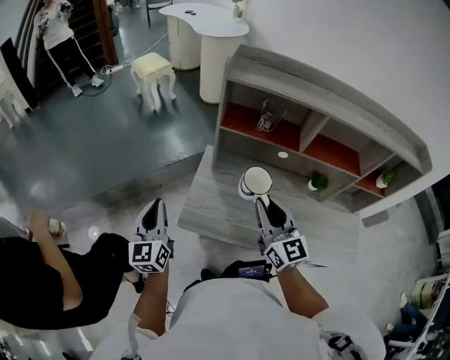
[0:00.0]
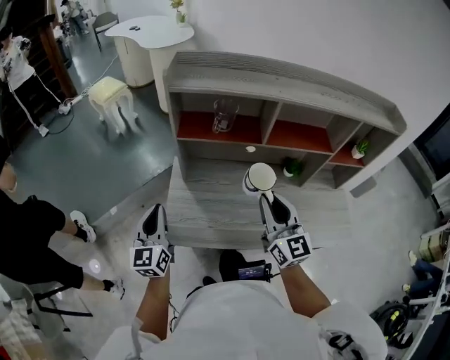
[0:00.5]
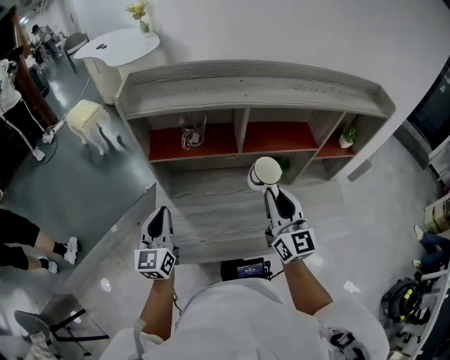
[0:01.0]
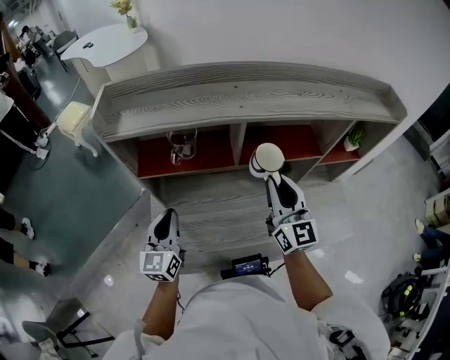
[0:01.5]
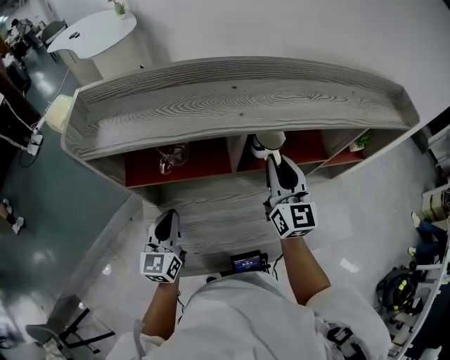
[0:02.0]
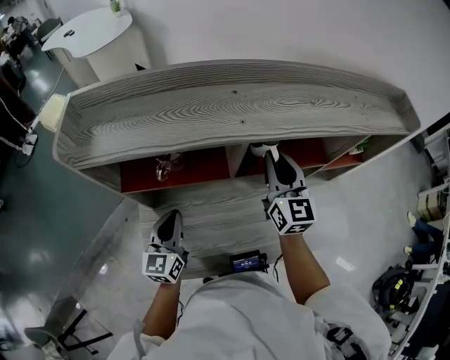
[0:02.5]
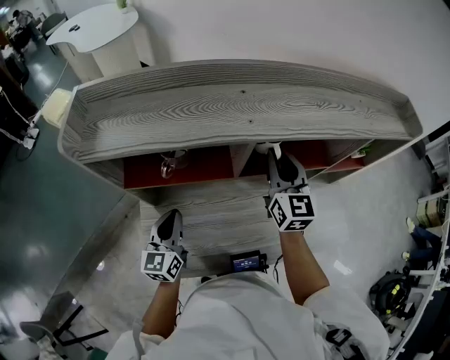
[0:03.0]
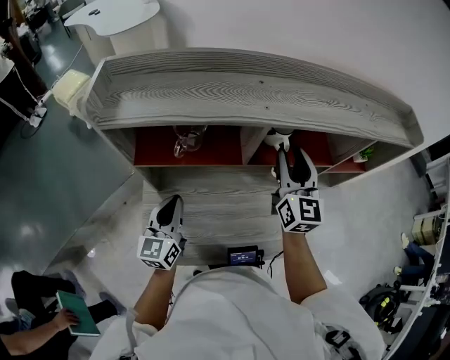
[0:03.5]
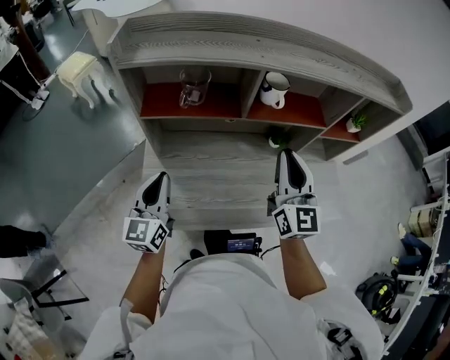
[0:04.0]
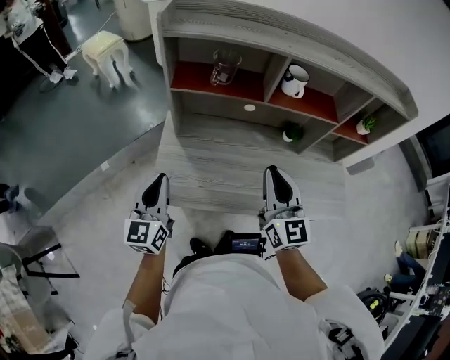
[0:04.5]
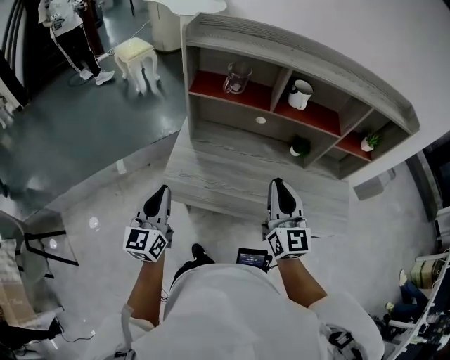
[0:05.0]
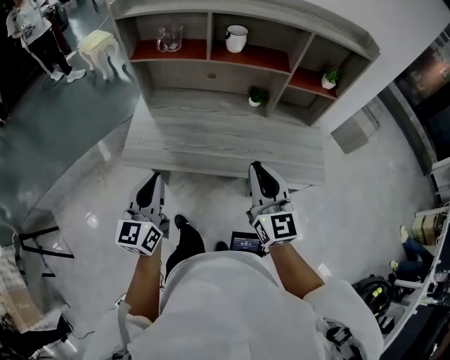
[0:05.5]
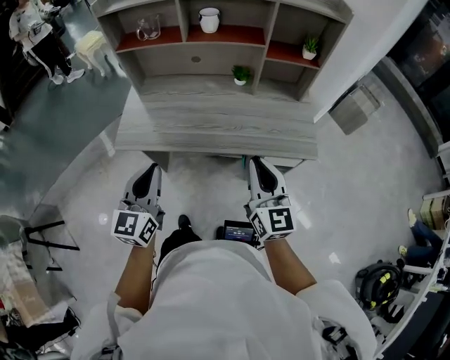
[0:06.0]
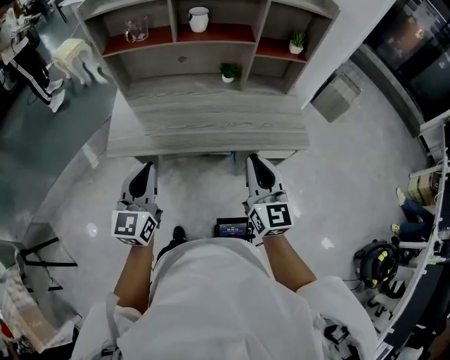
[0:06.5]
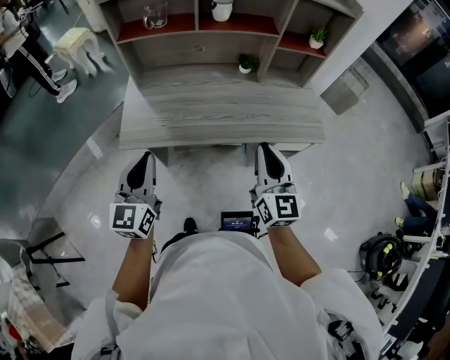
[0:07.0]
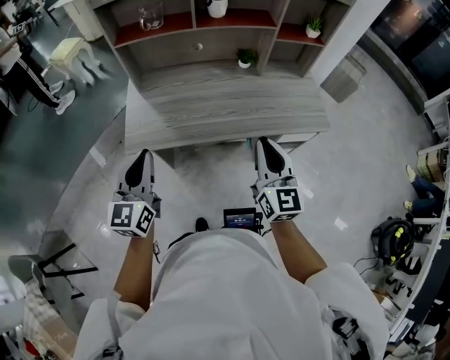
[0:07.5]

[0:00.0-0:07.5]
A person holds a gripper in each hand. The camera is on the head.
0:00.0 to 0:02.0: The left gripper ends up approximately 35 cm from where it was, and changes its angle by approximately 30 degrees. The right gripper moves approximately 35 cm, and rotates approximately 30 degrees.
0:02.0 to 0:04.0: The two grippers go approximately 15 cm backward.
0:04.0 to 0:05.5: The left gripper heads backward and to the right, covering approximately 30 cm. The right gripper shifts approximately 25 cm backward.
0:05.5 to 0:07.5: The left gripper travels to the left by roughly 5 cm, while the right gripper shifts about 5 cm backward, and travels to the right and back again, approximately 10 cm each way.

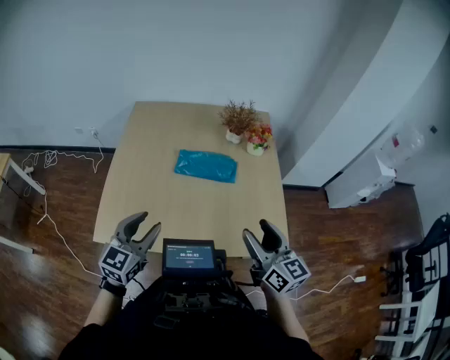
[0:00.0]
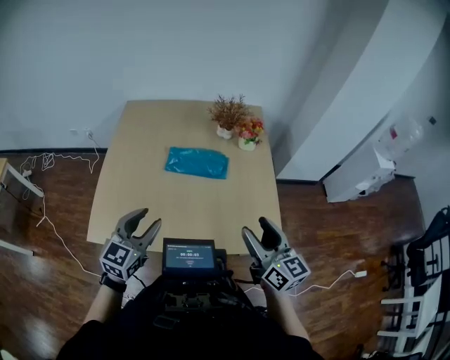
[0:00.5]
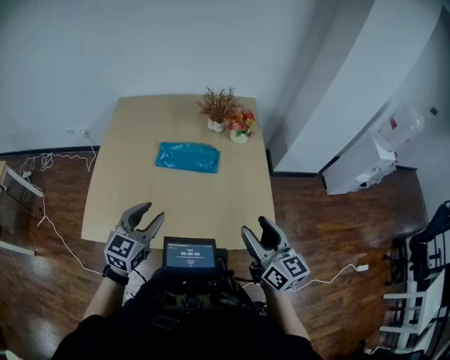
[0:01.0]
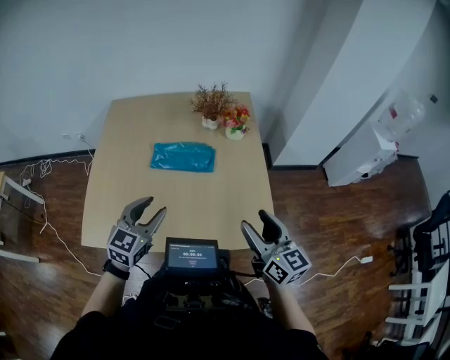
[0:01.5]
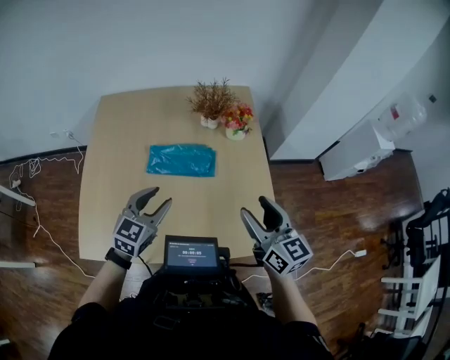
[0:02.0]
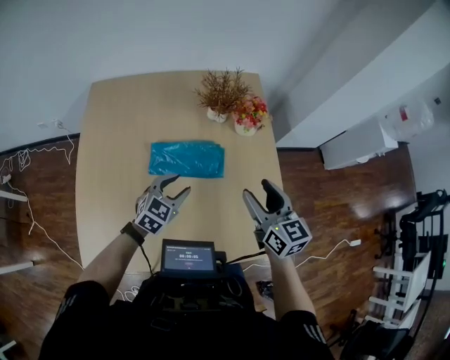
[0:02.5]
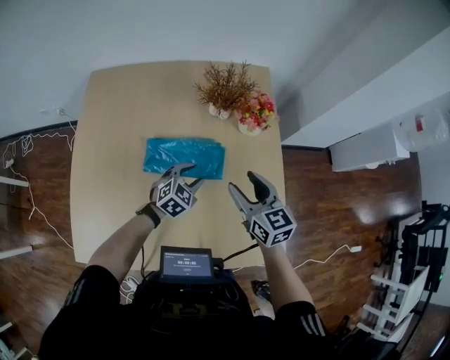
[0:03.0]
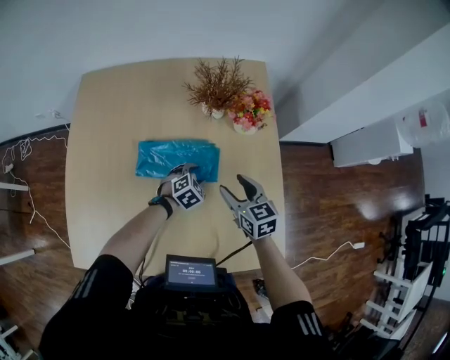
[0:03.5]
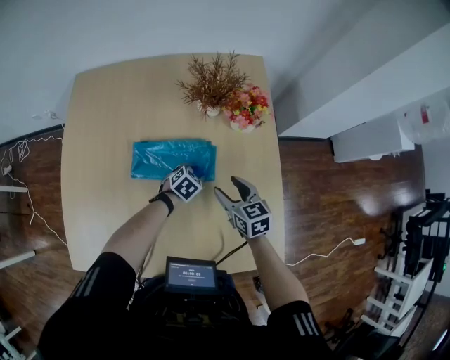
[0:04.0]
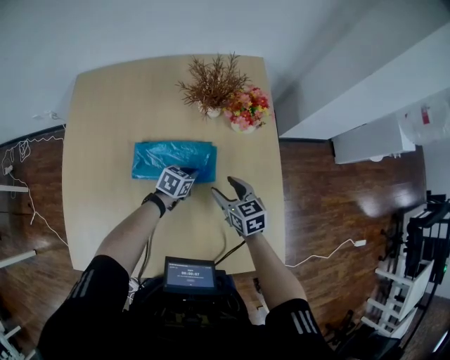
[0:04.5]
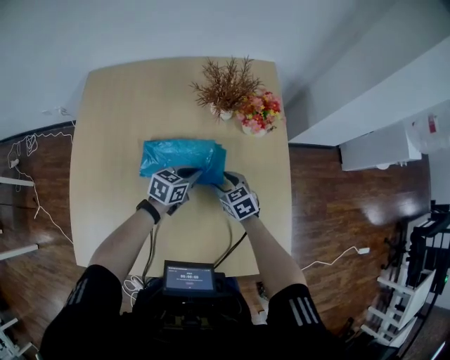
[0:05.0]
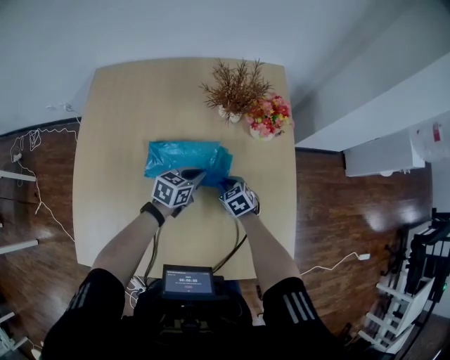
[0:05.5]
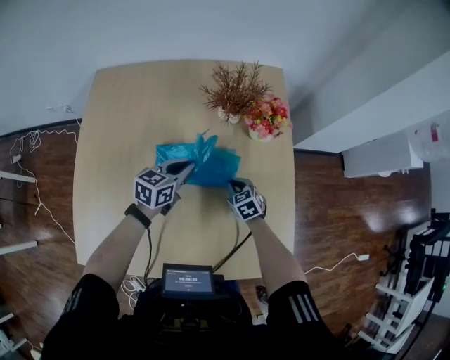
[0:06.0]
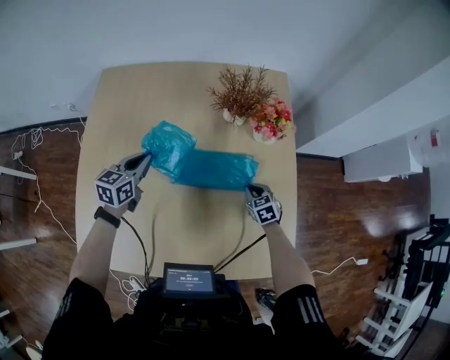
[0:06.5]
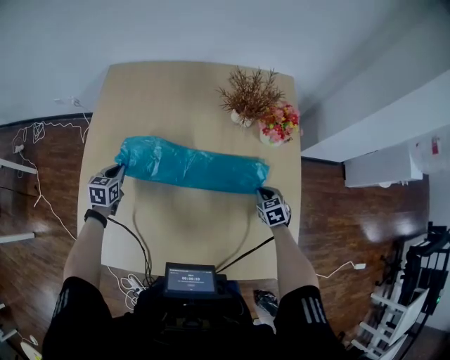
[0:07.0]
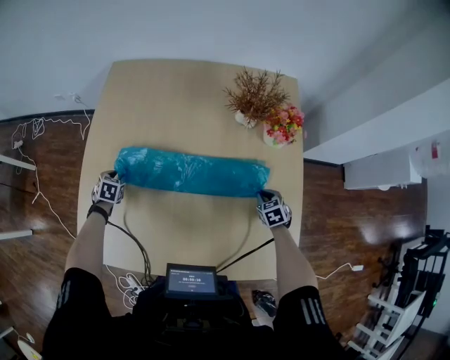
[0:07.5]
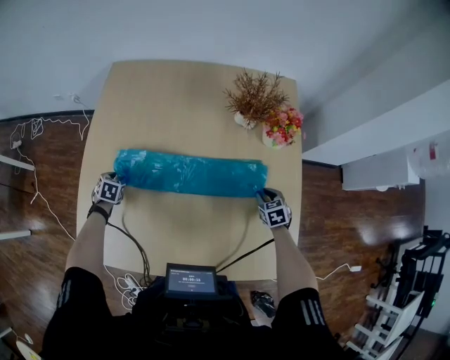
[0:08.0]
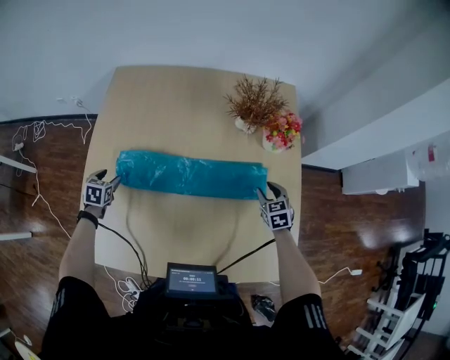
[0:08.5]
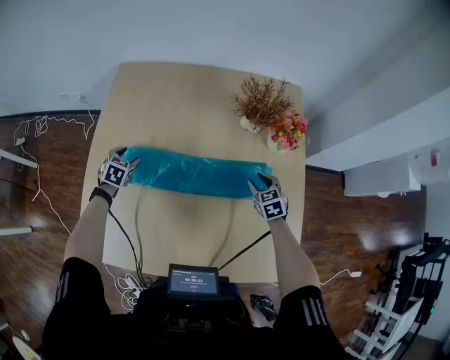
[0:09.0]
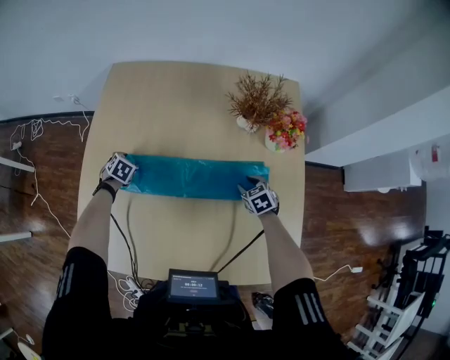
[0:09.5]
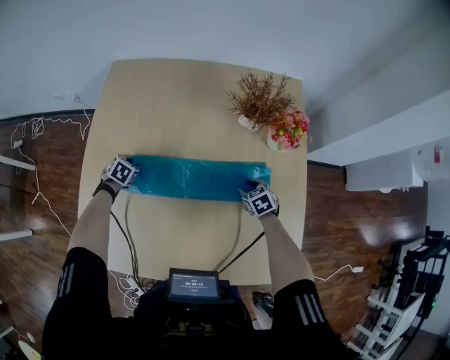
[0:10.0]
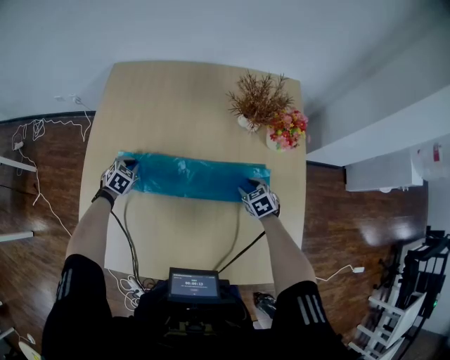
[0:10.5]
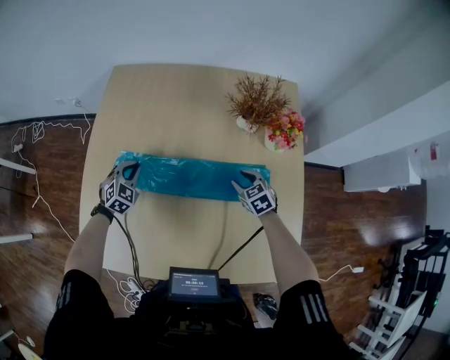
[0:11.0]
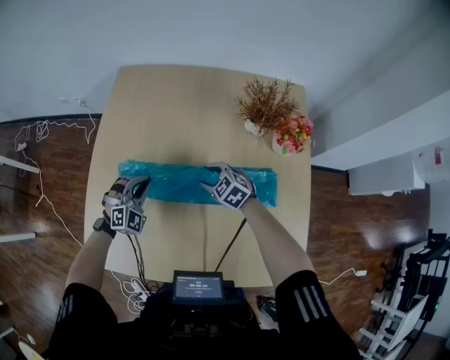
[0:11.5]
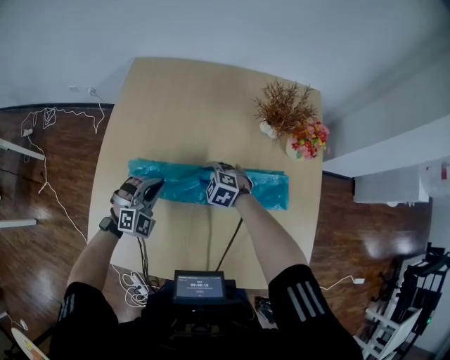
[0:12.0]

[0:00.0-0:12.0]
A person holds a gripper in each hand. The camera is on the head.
0:00.0 to 0:02.0: The right gripper travels forward and to the right by approximately 15 cm, while the left gripper goes some 20 cm forward, to the right and downward.
0:02.0 to 0:04.0: The grippers both shift downward and forward by roughly 35 cm. The left gripper angles its fingers downward, by about 40 degrees. Meanwhile the right gripper turns by some 30 degrees.
0:04.0 to 0:06.0: The right gripper shifts roughly 10 cm downward, changes its angle by about 30 degrees, and closes up; the left gripper shifts some 20 cm upward and to the left, angles its fingers upward, by about 30 degrees, and closes.
0:06.0 to 0:08.0: The right gripper moves to the right, some 10 cm, and opens. The left gripper is displaced to the left and downward by approximately 40 cm, tilts its fingers approximately 40 degrees downward, and opens up.
0:08.0 to 0:10.0: The right gripper is displaced to the left and forward by about 10 cm, while the left gripper heads to the right and forward, covering roughly 10 cm.
0:10.0 to 0:12.0: The right gripper shifts approximately 25 cm to the left, and rolls counterclockwise, seen from behind, by some 40 degrees. The left gripper heads upward, backward and to the right, covering roughly 20 cm, points its fingers roughly 40 degrees further upward, and closes.

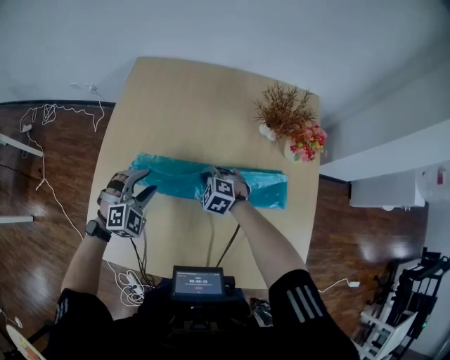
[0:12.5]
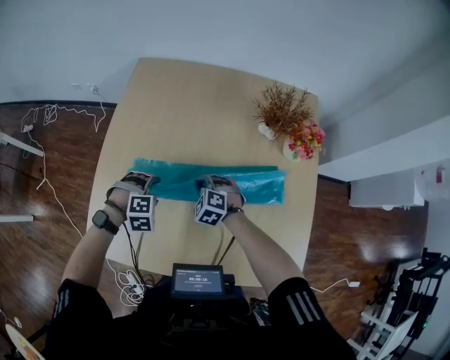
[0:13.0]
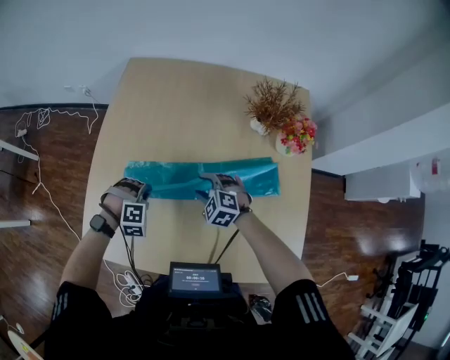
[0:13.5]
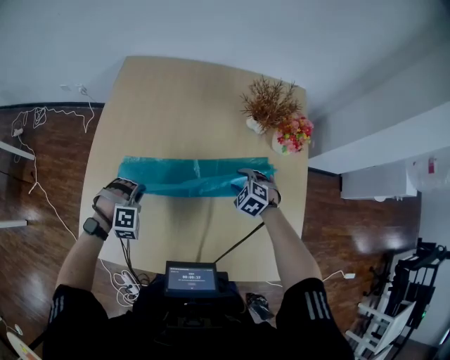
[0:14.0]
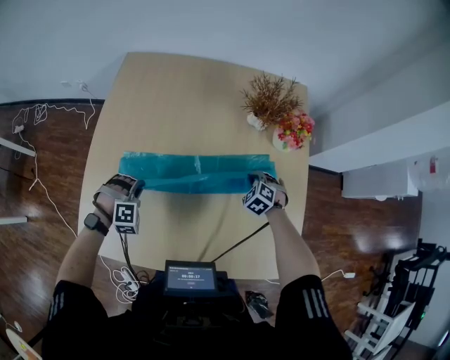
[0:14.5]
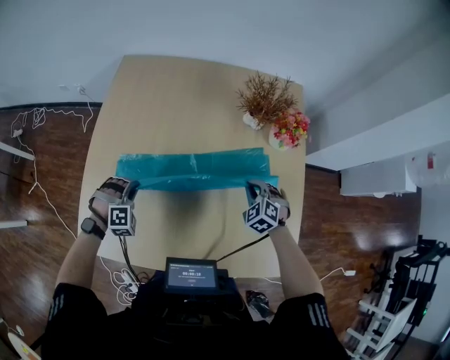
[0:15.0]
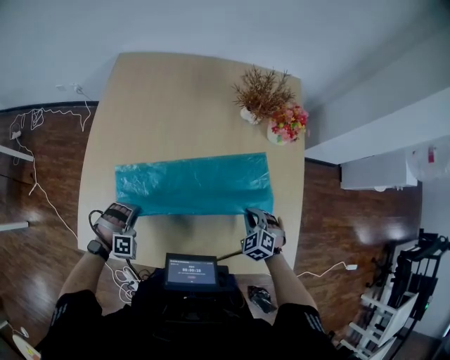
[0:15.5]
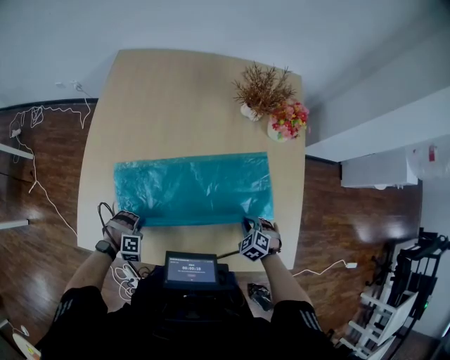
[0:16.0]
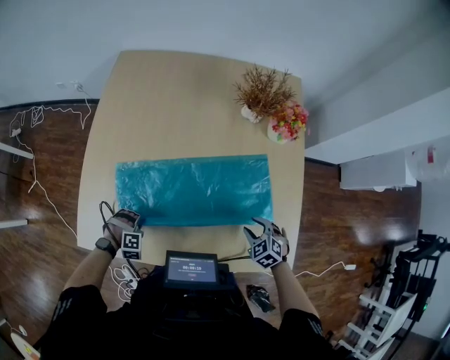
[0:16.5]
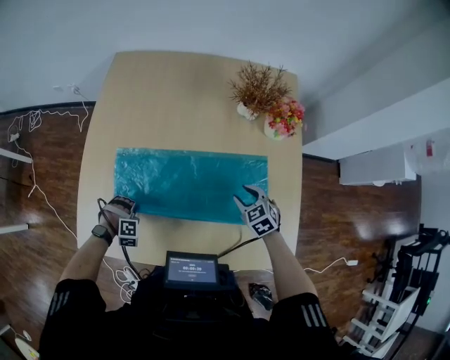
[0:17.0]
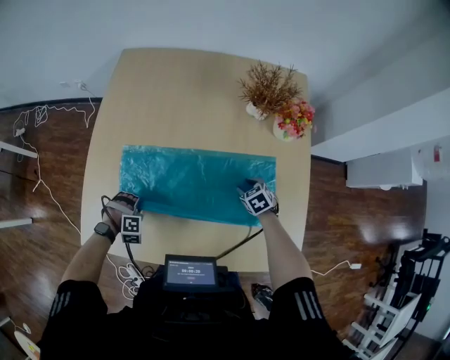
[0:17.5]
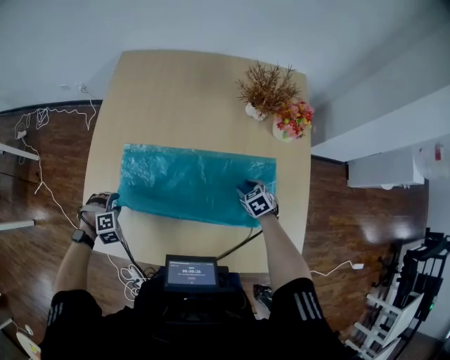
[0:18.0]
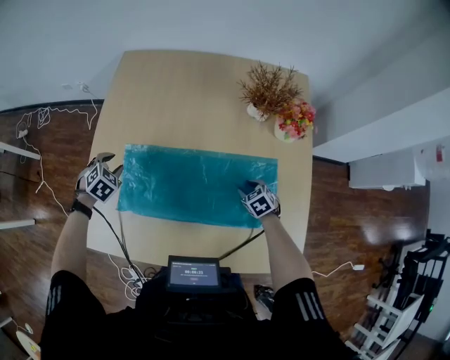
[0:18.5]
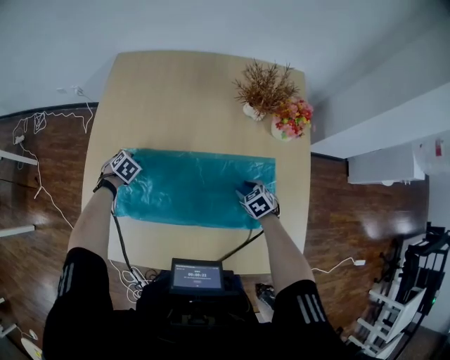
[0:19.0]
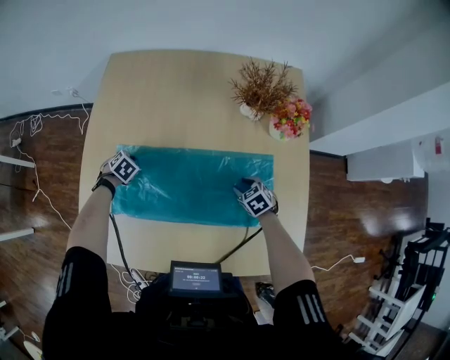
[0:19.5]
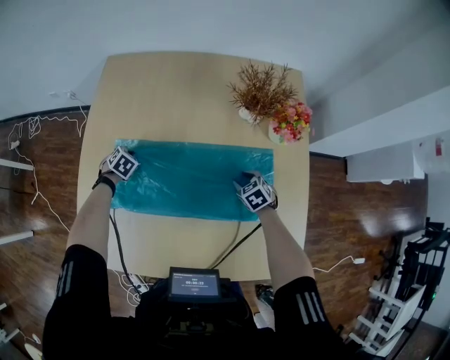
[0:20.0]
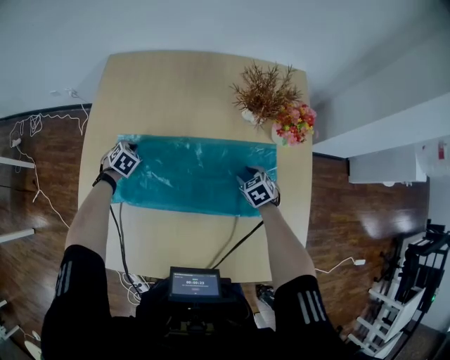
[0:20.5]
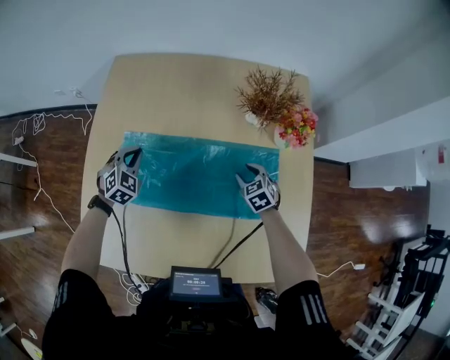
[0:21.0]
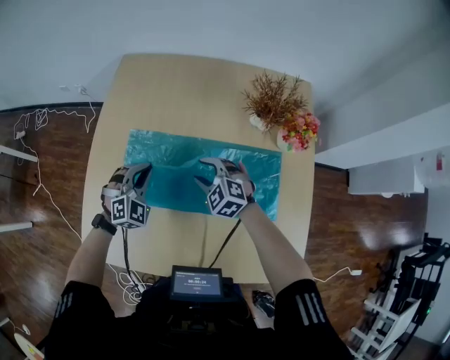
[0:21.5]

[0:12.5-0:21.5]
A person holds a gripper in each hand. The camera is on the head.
0:12.5 to 0:14.5: The left gripper shifts approximately 10 cm downward, changes its angle by about 30 degrees, and closes up. The right gripper moves approximately 25 cm, turns by some 20 degrees, and opens, then closes again.
0:14.5 to 0:17.0: The right gripper swings up and down, approximately 10 cm each way, with 2 reversals, swivels roughly 30 degrees, and opens up. Meanwhile the left gripper heads downward, covering approximately 10 cm.
0:17.0 to 0:19.5: The right gripper heads downward, covering approximately 10 cm. Meanwhile the left gripper travels upward and back again, roughly 15 cm each way, twists about 60 degrees counterclockwise, seen from behind, and opens and closes again.
0:19.5 to 0:21.5: The right gripper changes place by roughly 25 cm, and rotates some 40 degrees; the left gripper moves upward, about 20 cm, and tips its fingers upward by approximately 40 degrees.
